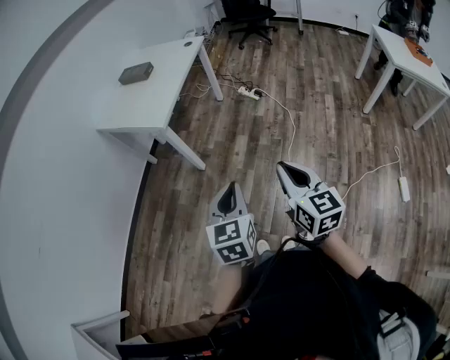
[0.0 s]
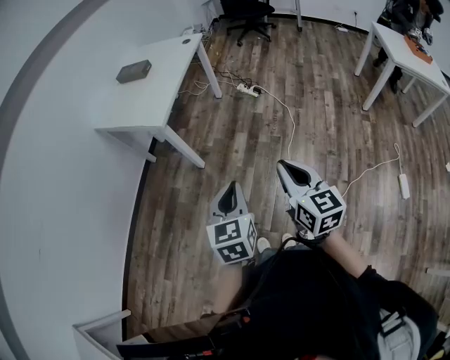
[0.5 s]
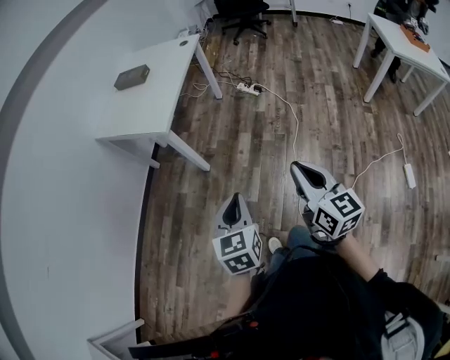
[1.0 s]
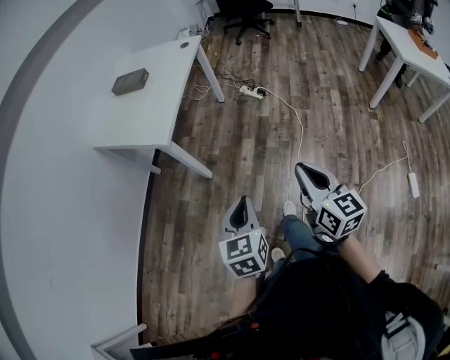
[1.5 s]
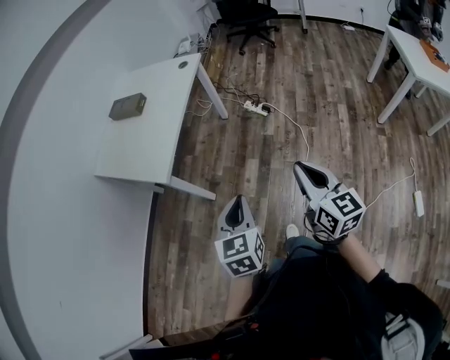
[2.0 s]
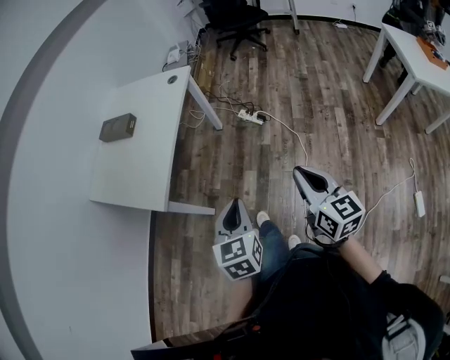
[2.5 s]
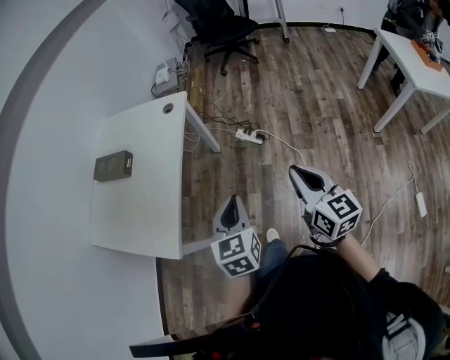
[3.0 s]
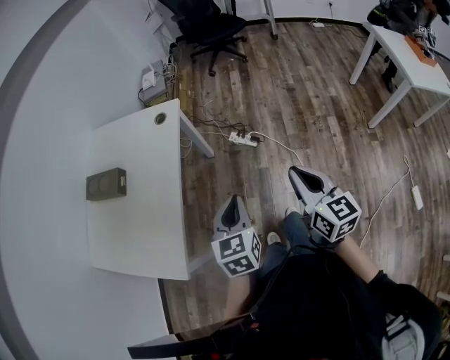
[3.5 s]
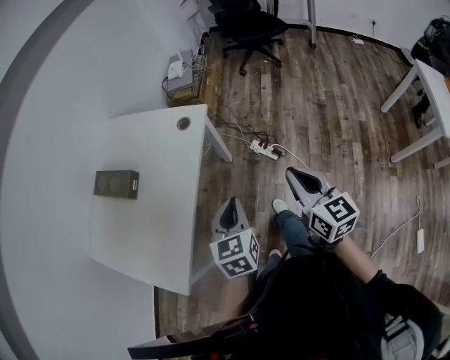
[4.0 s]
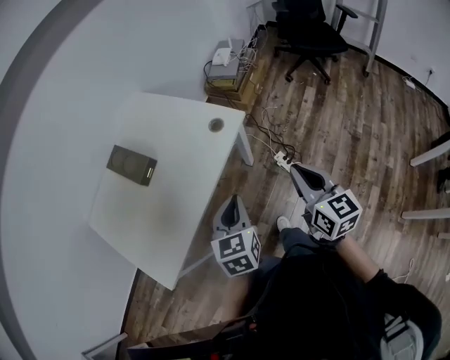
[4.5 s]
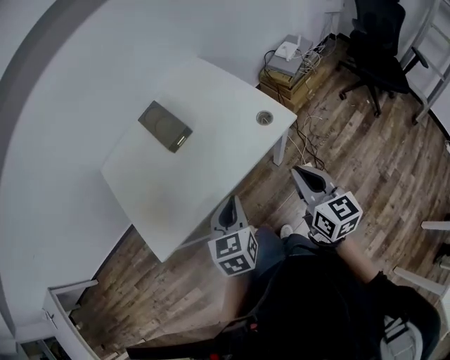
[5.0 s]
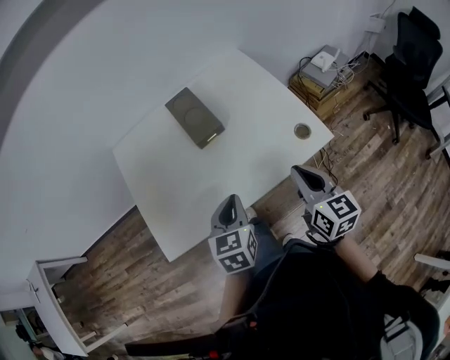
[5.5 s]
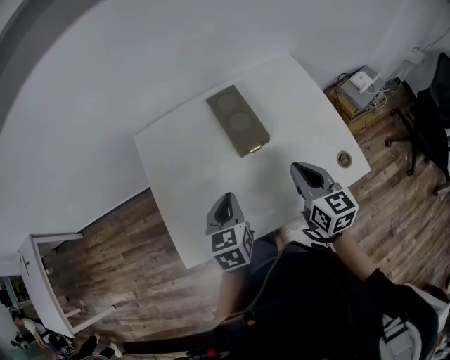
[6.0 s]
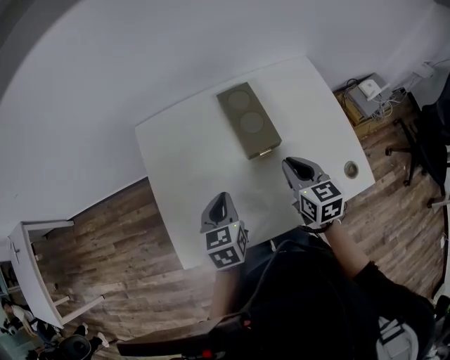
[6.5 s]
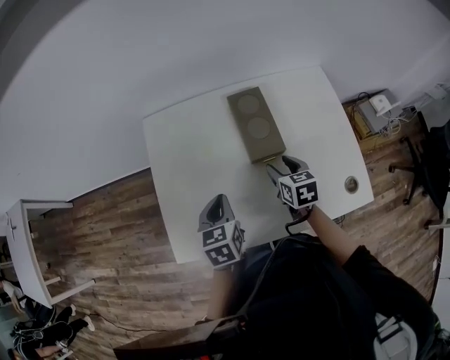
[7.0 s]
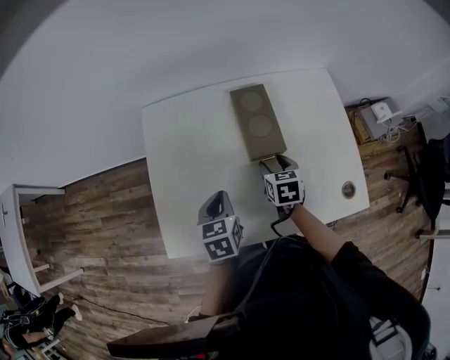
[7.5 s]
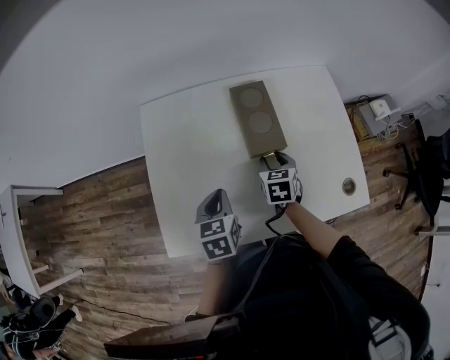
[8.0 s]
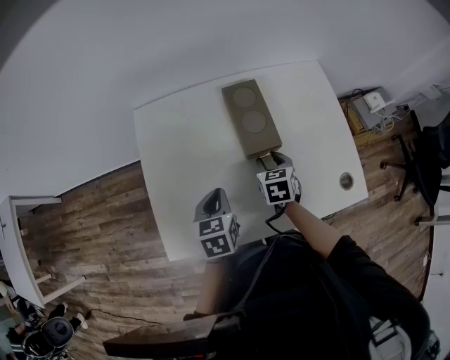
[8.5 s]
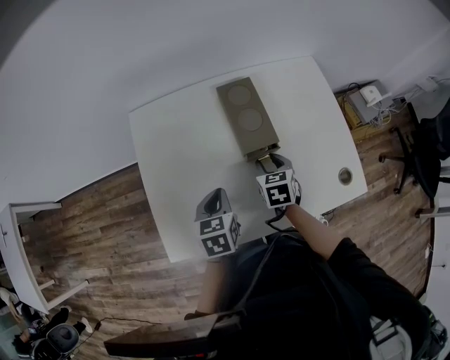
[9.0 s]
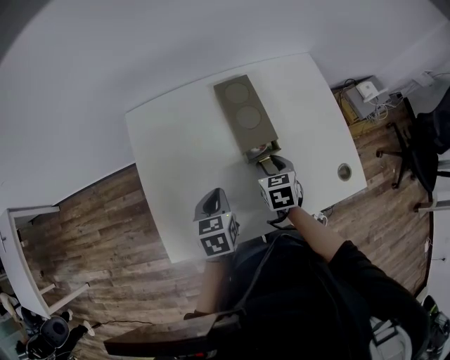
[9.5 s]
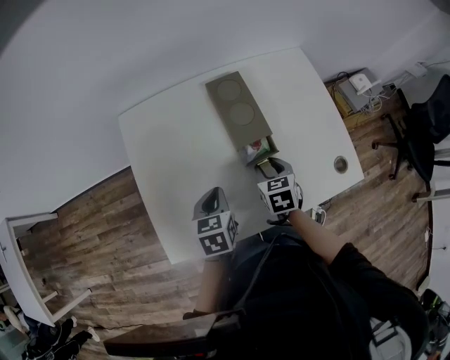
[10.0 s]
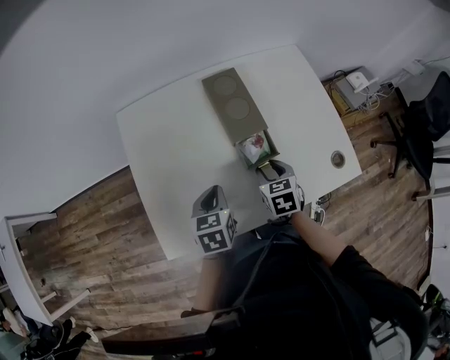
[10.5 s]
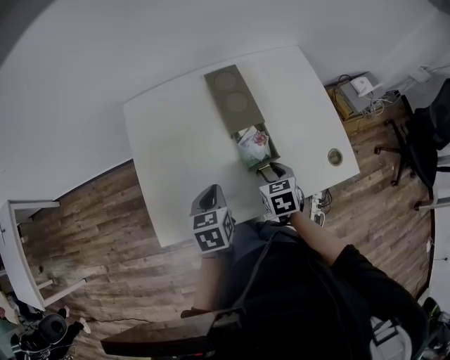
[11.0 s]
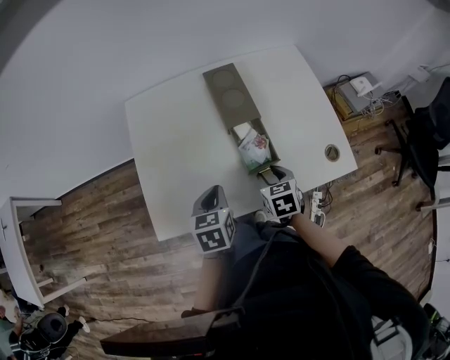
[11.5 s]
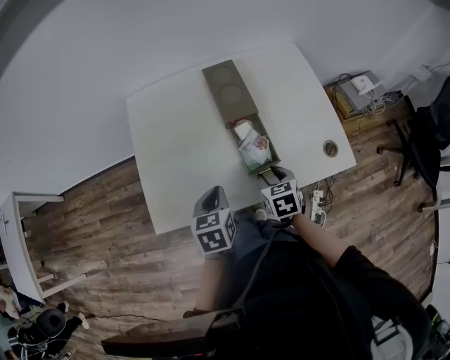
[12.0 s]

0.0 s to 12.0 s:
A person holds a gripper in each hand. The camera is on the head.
0.0 to 2.0 s: The grippers both shift forward by about 25 cm.
2.0 to 4.0 s: The pair of grippers is taken forward, roughly 50 cm.
4.0 to 6.0 s: The left gripper ends up about 40 cm from where it was, and rotates some 60 degrees, while the right gripper moves approximately 50 cm, and turns by about 60 degrees.
6.0 to 8.0 s: The left gripper shifts some 5 cm downward. Meanwhile the right gripper moves downward, forward and to the left, some 20 cm, changes its angle by roughly 30 degrees, and opens.
8.0 to 10.0 s: The right gripper is displaced backward by some 5 cm.
10.0 to 12.0 s: The two grippers go approximately 10 cm backward.

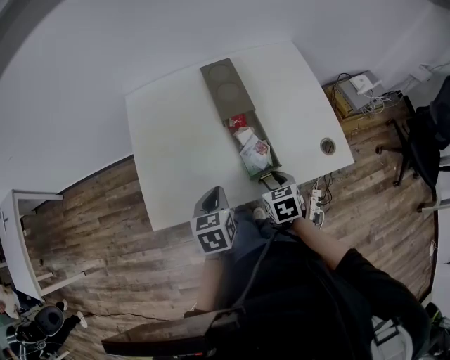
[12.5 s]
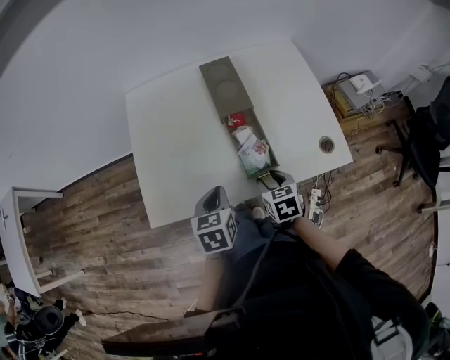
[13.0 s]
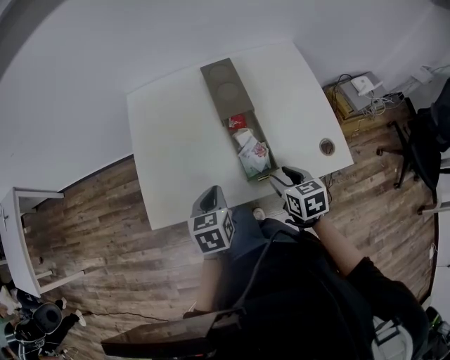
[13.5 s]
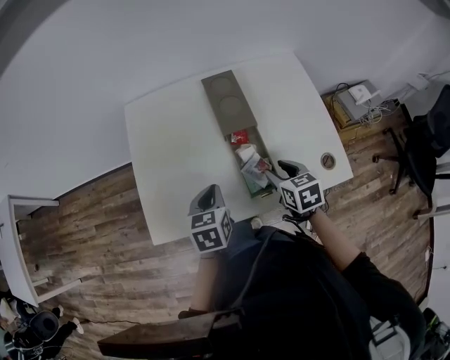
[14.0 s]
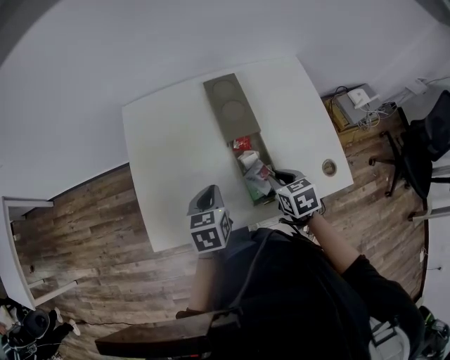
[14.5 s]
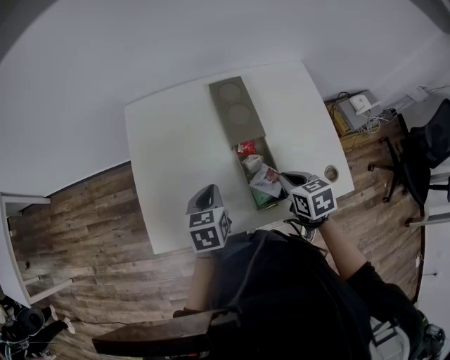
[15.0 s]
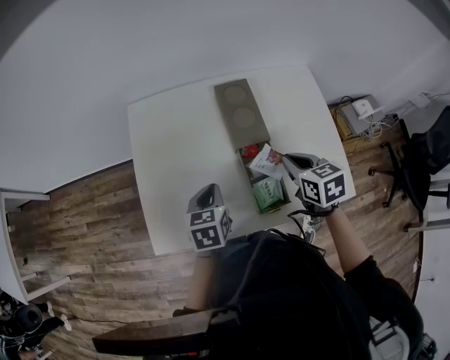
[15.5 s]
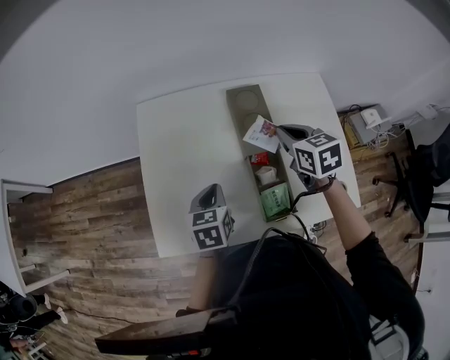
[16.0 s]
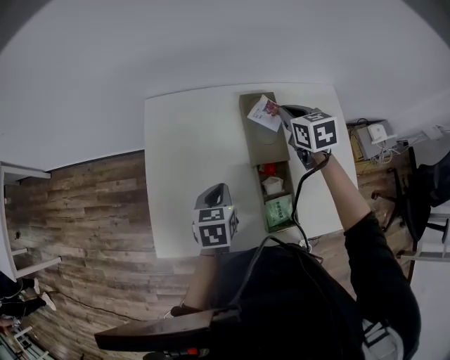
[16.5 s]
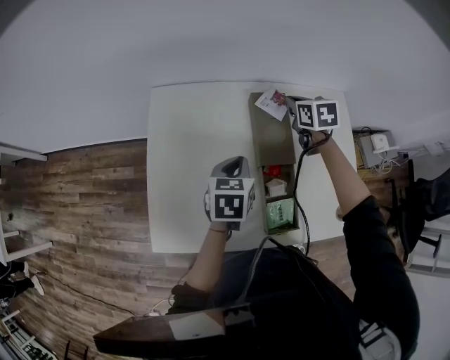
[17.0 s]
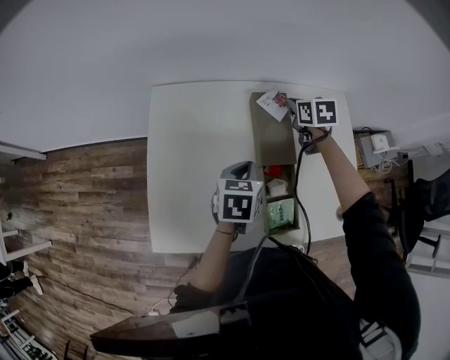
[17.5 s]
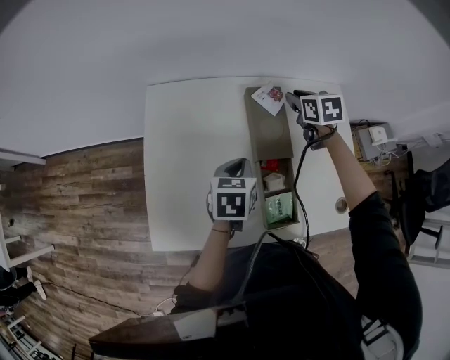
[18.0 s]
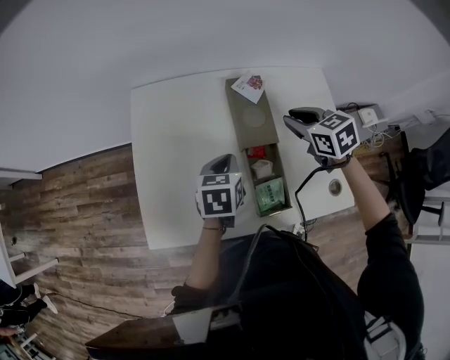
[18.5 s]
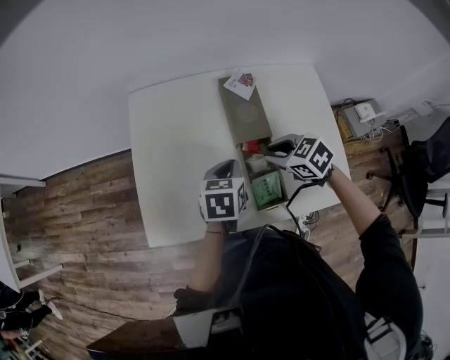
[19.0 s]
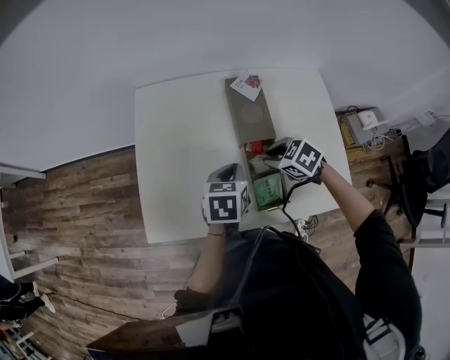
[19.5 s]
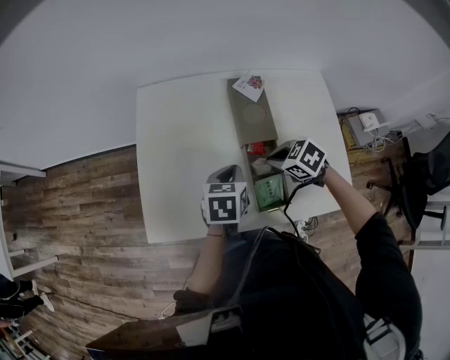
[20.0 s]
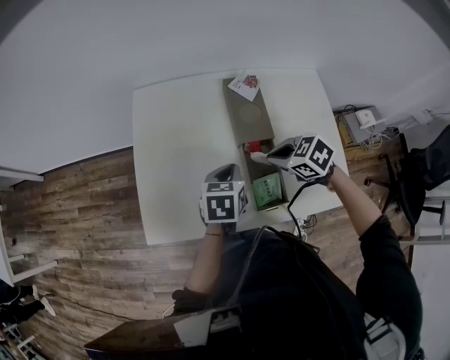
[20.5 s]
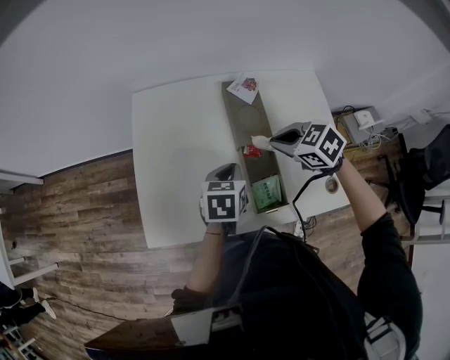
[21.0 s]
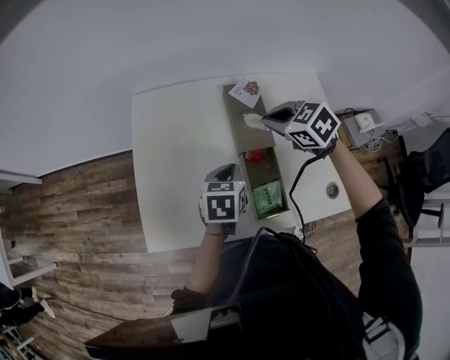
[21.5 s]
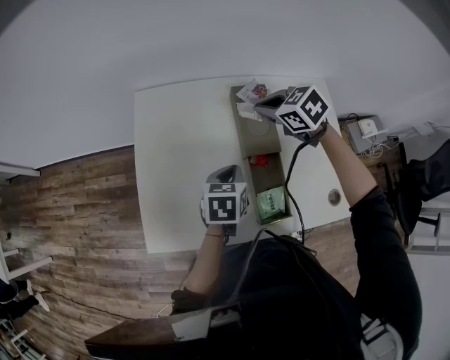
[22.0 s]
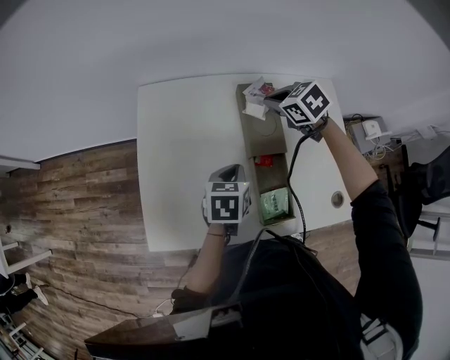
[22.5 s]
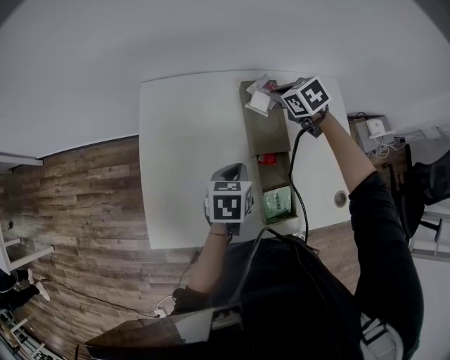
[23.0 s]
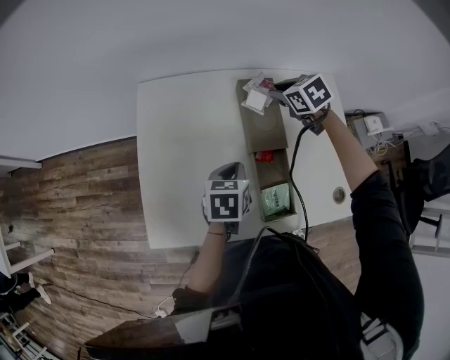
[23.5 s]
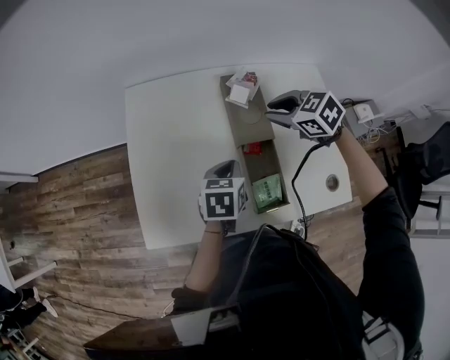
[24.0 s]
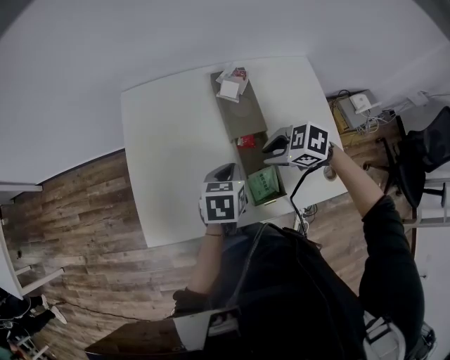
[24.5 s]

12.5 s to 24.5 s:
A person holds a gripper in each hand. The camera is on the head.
12.5 to 14.5 s: The two grippers go approximately 10 cm forward. The right gripper closes.
14.5 to 16.5 s: The right gripper moves forward, approximately 30 cm. Meanwhile the left gripper is displaced forward by about 5 cm.
16.5 to 18.5 s: The left gripper shifts about 5 cm to the right. Meanwhile the right gripper is displaced backward by some 10 cm.
18.5 to 20.5 s: The left gripper changes place by some 5 cm; the right gripper travels backward, to the left and downward by roughly 15 cm, and rotates approximately 30 degrees.
20.5 to 22.5 s: The right gripper moves forward, some 20 cm.
22.5 to 24.5 s: The right gripper changes place by roughly 25 cm, swivels approximately 30 degrees, and opens its fingers. Meanwhile the left gripper moves about 5 cm.

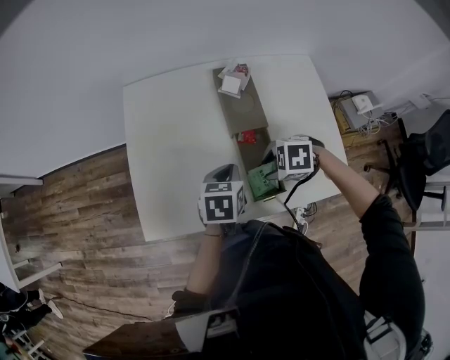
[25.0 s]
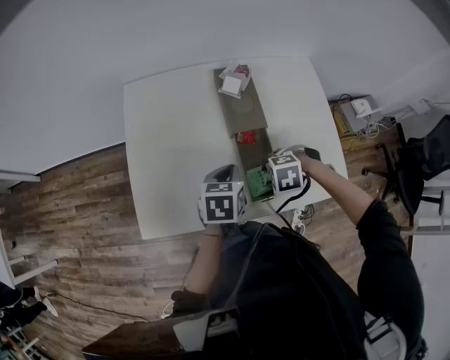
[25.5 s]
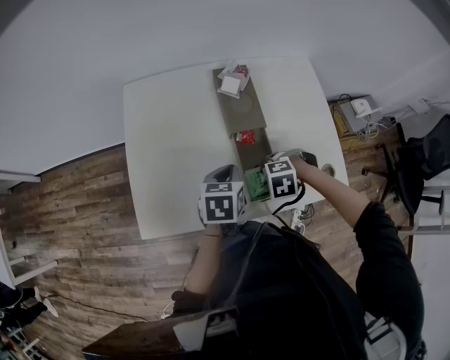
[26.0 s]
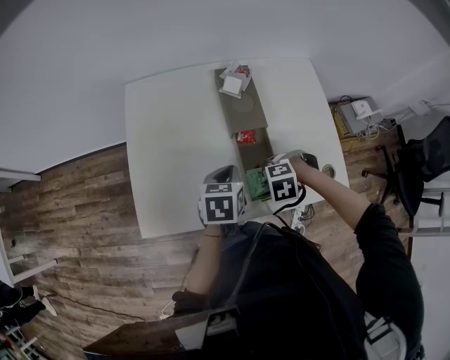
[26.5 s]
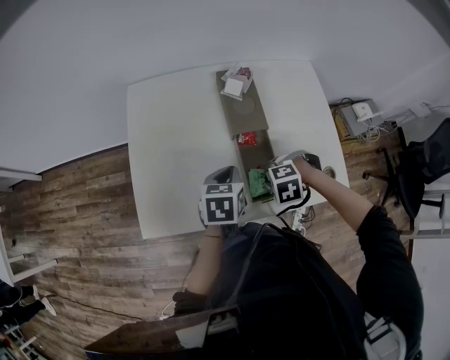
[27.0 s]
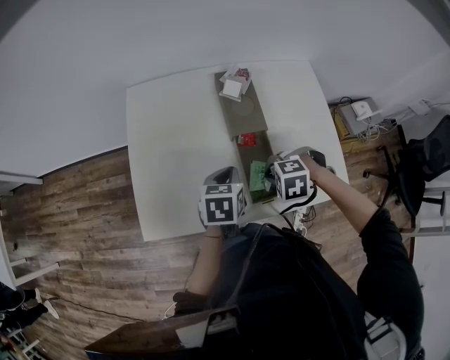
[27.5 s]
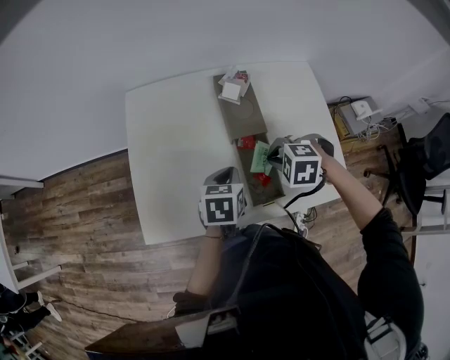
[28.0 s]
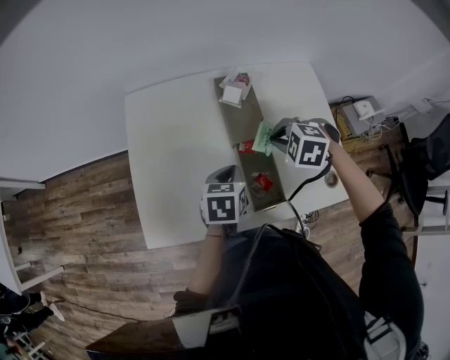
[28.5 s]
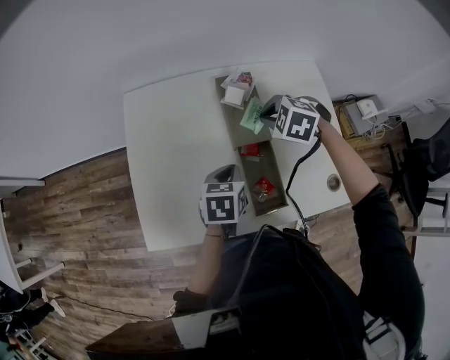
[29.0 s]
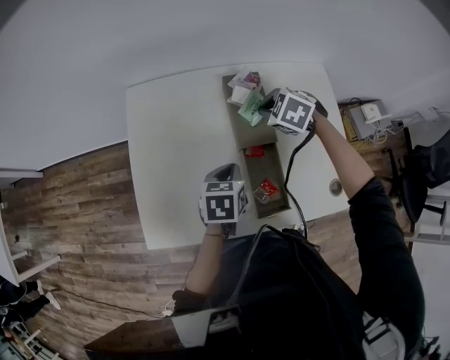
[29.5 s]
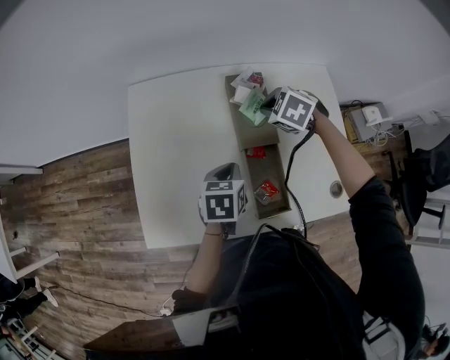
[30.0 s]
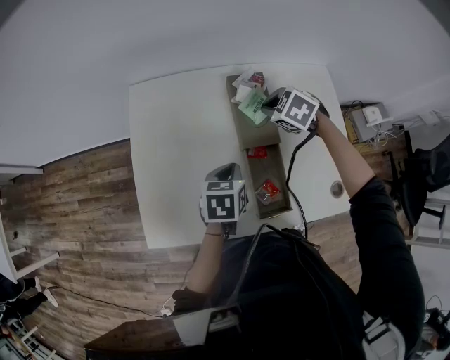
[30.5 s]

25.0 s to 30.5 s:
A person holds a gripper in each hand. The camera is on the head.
25.0 to 27.0 s: The right gripper changes its angle by roughly 20 degrees, and closes its fingers.
27.0 to 28.5 s: The right gripper shifts by some 15 cm, and rotates roughly 30 degrees.
28.5 to 30.5 s: The right gripper travels forward by some 15 cm.
